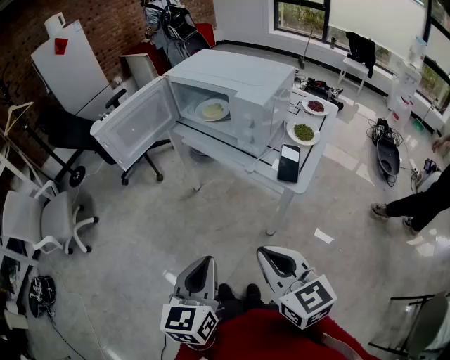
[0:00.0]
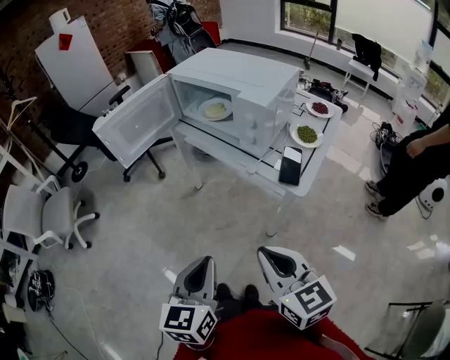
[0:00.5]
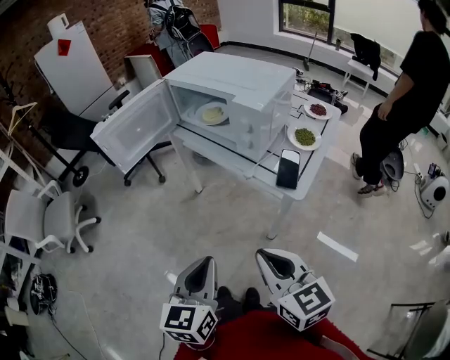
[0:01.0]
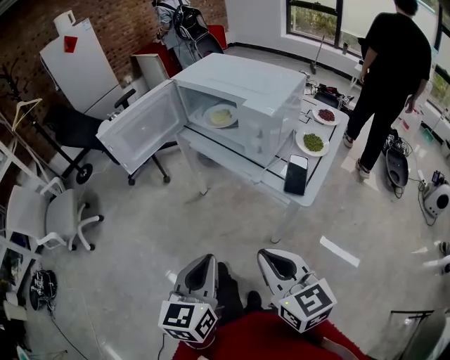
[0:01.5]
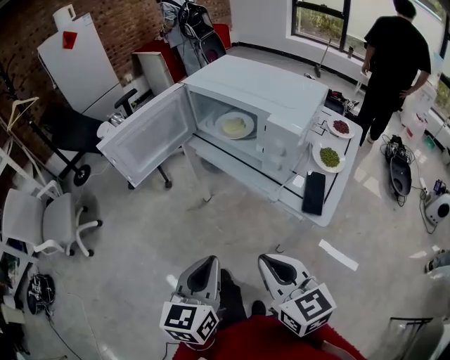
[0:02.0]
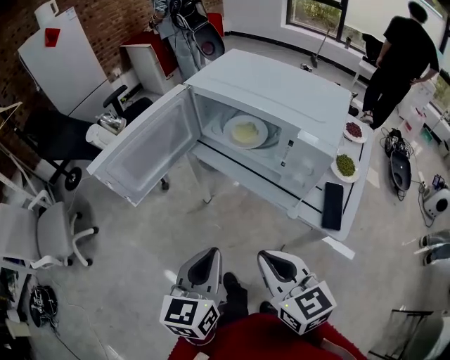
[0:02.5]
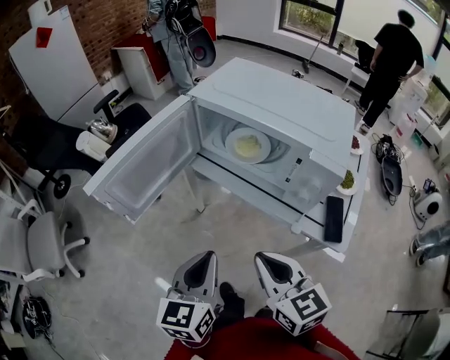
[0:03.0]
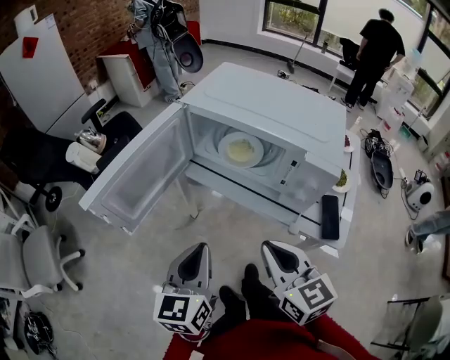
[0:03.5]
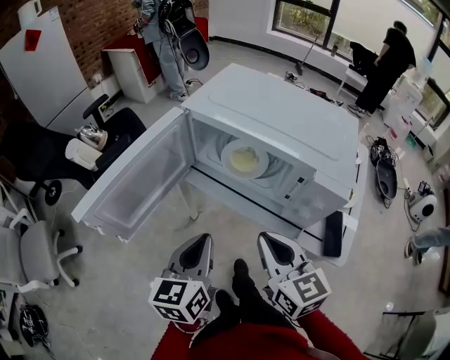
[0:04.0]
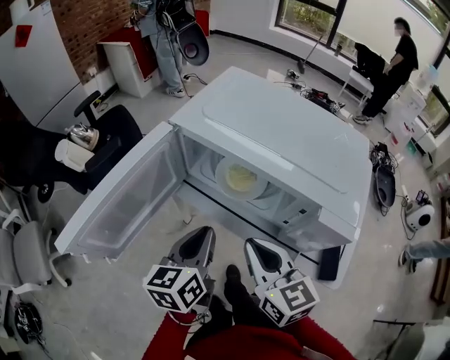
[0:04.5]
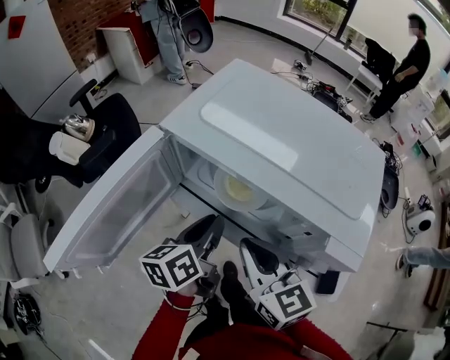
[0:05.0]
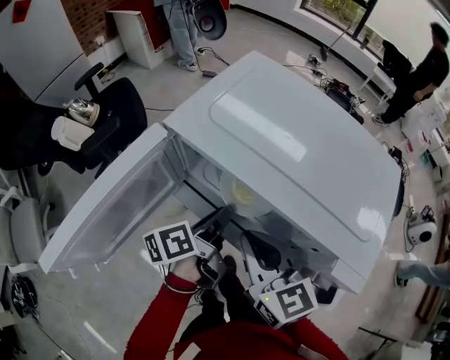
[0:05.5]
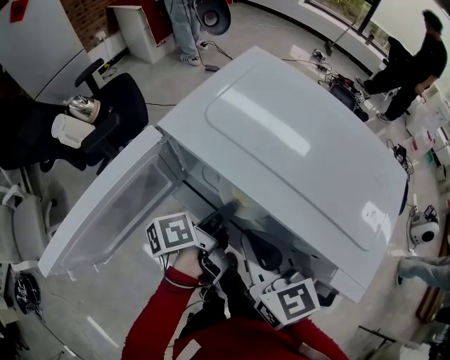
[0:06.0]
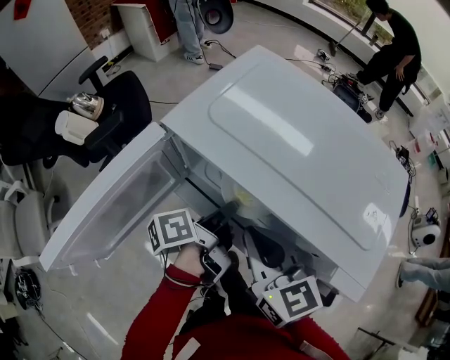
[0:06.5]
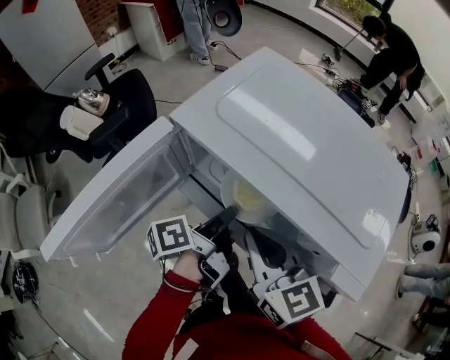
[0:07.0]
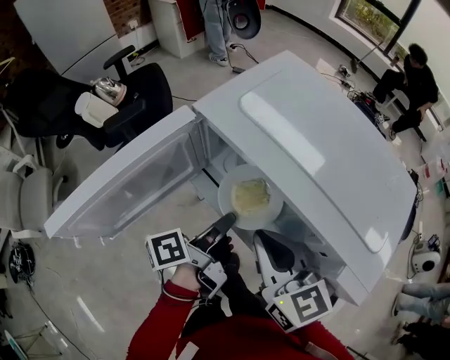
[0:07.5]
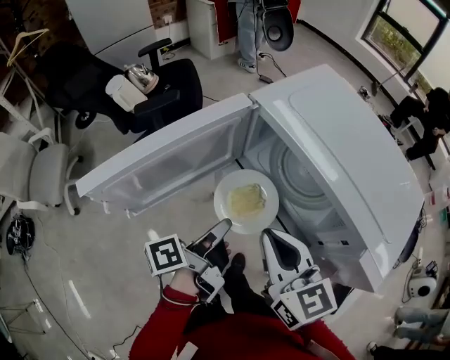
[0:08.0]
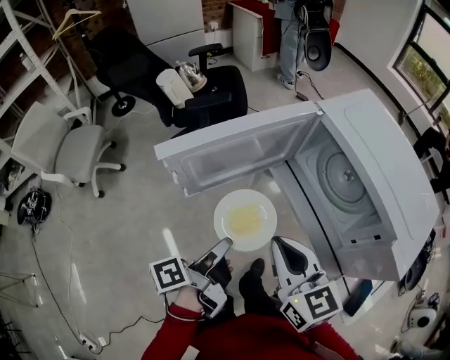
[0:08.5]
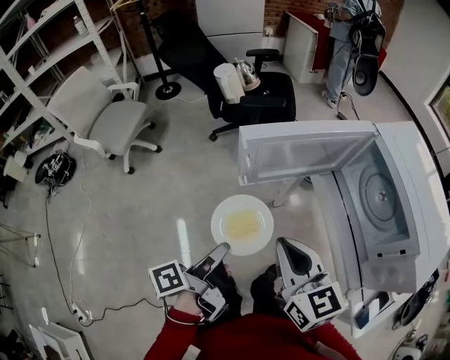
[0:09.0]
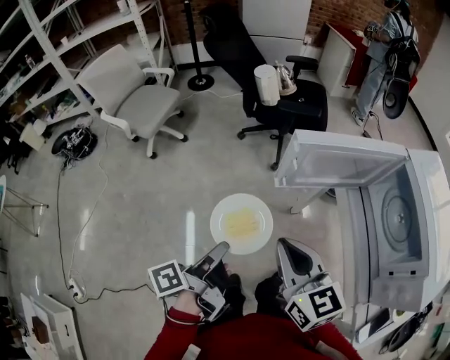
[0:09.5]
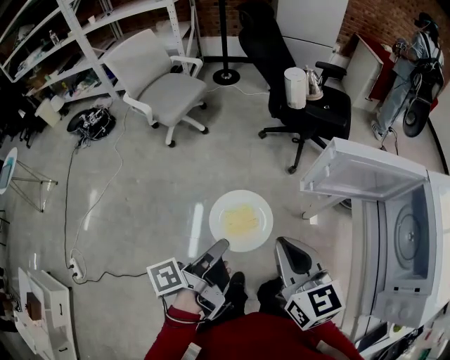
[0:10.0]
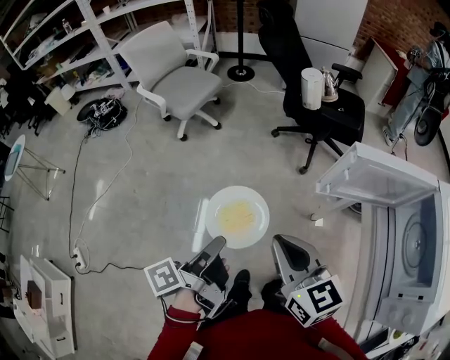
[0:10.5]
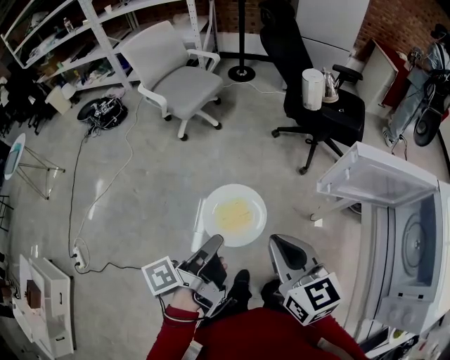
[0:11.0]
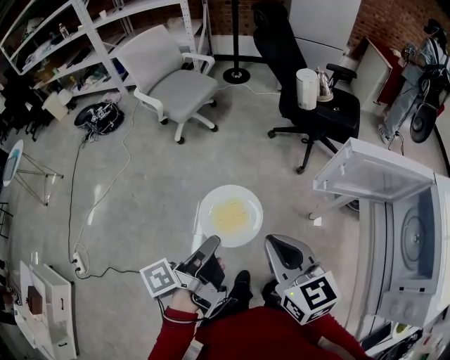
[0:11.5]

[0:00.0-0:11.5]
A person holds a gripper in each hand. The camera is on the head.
0:00.0 to 0:02.0: The two grippers go roughly 10 cm forward.
0:02.0 to 0:04.0: The two grippers go roughly 20 cm forward.
0:04.0 to 0:06.0: The right gripper travels forward by about 15 cm. Meanwhile the left gripper moves forward, downward and to the right, some 20 cm, rolls counterclockwise, seen from behind, by roughly 60 degrees, and opens its fingers.
0:06.0 to 0:07.5: The left gripper changes place by some 5 cm, and rotates approximately 20 degrees.
0:07.5 to 0:09.5: The right gripper moves some 30 cm, and swivels some 40 degrees, while the left gripper changes place by some 40 cm, and rotates about 50 degrees.
0:09.5 to 0:11.5: The two grippers go approximately 10 cm to the left.

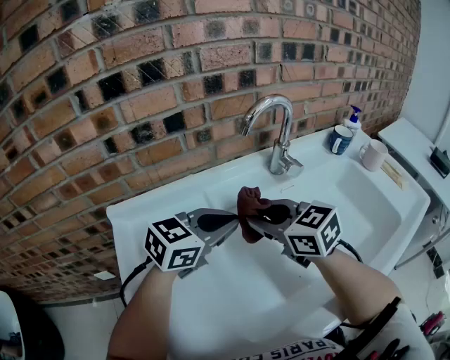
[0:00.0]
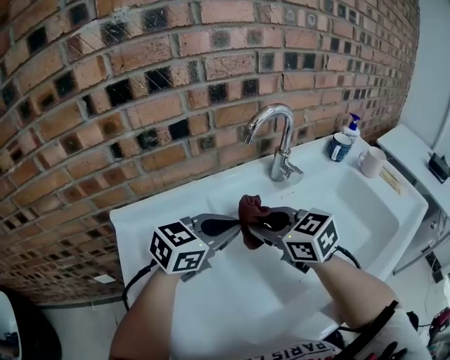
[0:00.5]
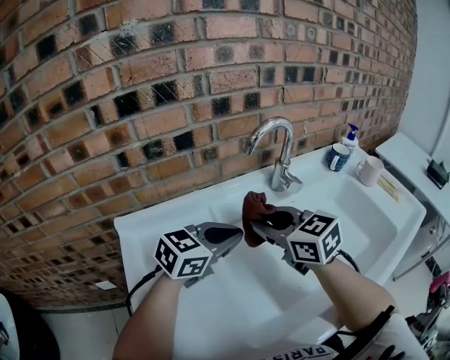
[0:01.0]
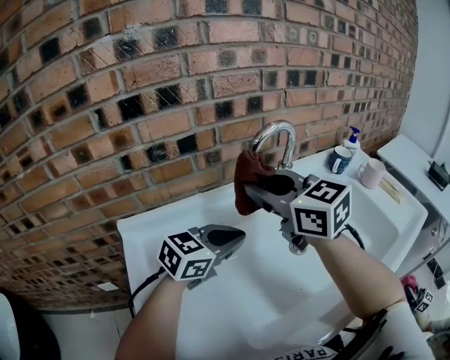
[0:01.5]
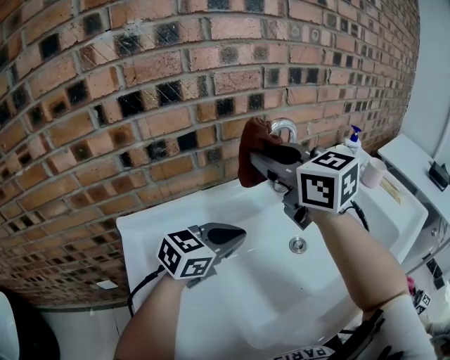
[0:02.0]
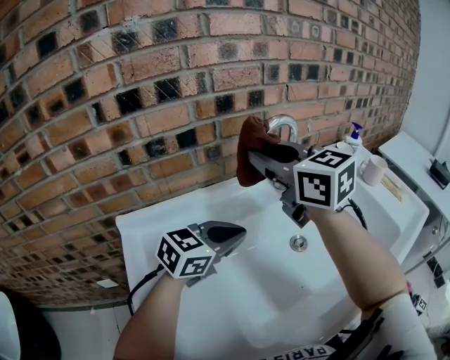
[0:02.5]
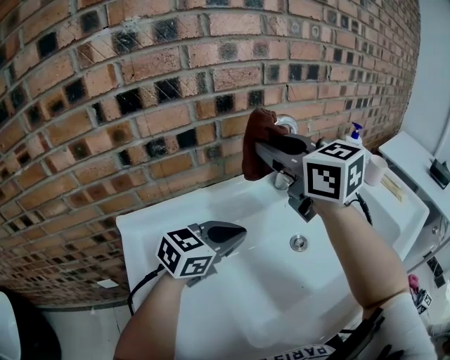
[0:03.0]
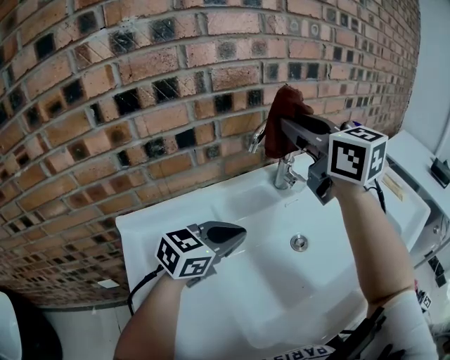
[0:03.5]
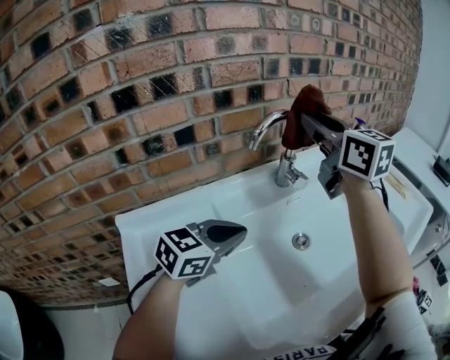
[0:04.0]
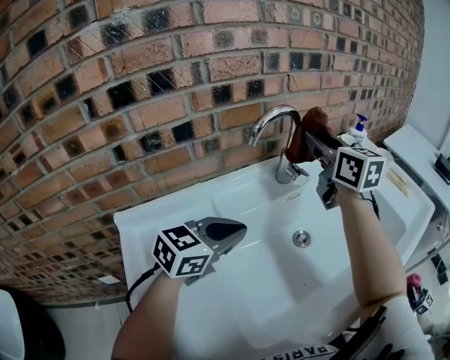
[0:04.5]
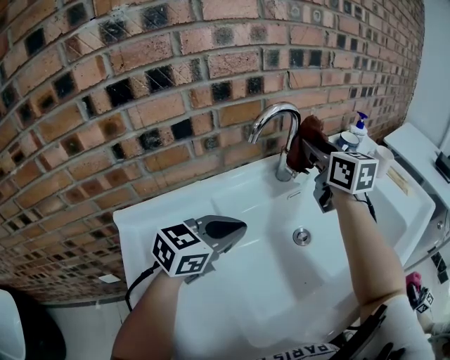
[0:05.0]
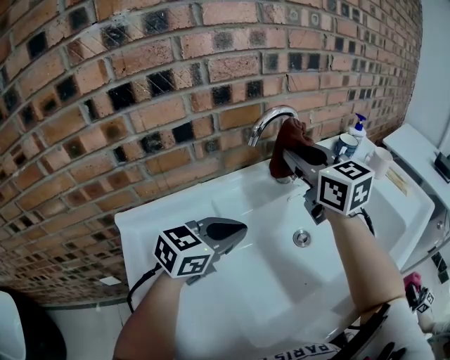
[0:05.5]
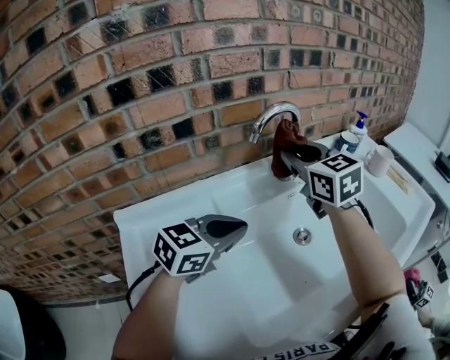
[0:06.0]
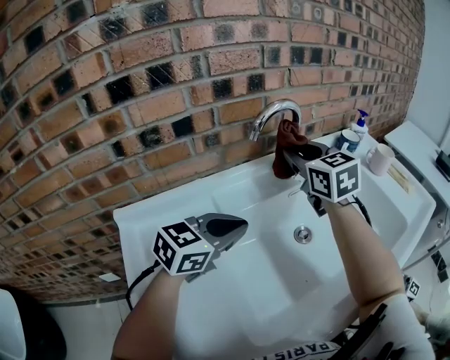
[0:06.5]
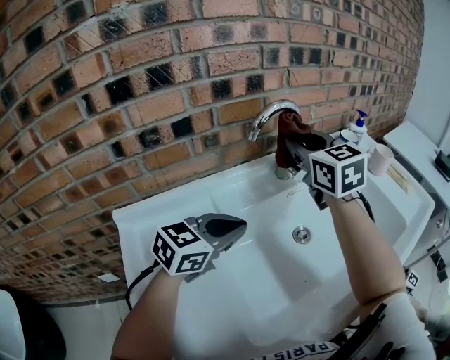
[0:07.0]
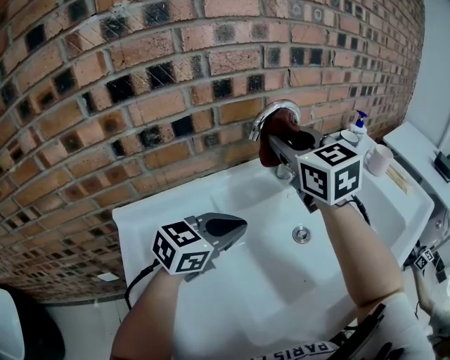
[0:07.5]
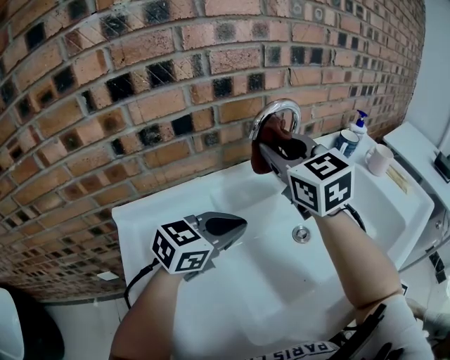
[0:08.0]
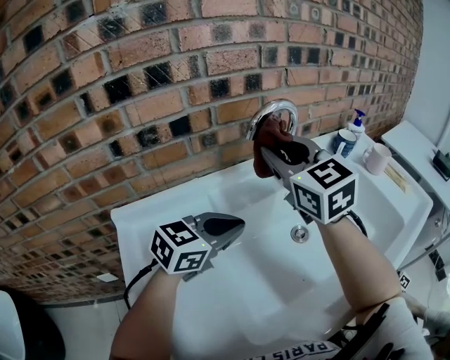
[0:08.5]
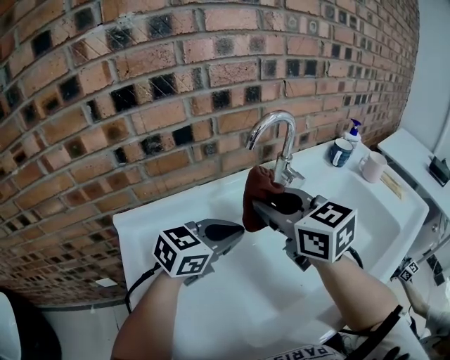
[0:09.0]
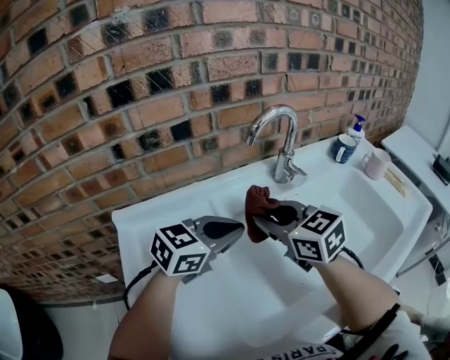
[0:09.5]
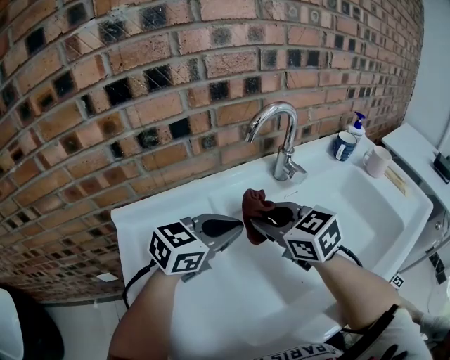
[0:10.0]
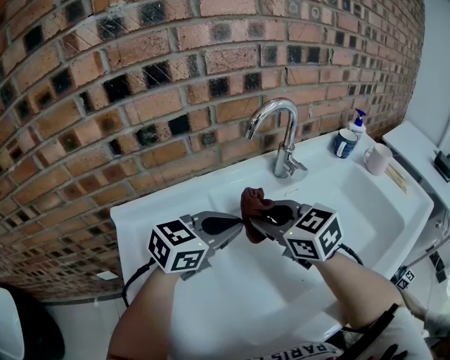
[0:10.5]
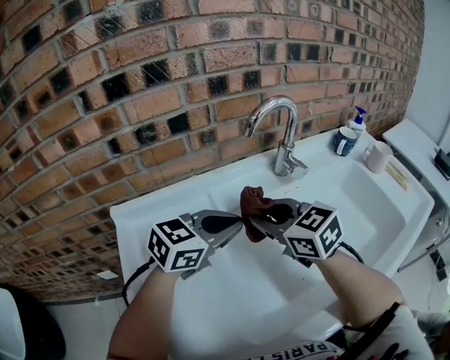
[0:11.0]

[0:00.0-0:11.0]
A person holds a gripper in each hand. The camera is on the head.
0:00.0 to 0:02.0: The right gripper moves upward, some 20 cm.
0:02.0 to 0:03.5: The right gripper goes some 5 cm to the right.
0:03.5 to 0:05.5: The right gripper travels downward by roughly 10 cm.
0:05.5 to 0:07.5: The grippers stay close to where they were, moving slightly.
0:07.5 to 0:09.0: The right gripper is displaced backward and downward by roughly 10 cm.
0:09.0 to 0:11.0: The right gripper heads downward, covering some 10 cm.

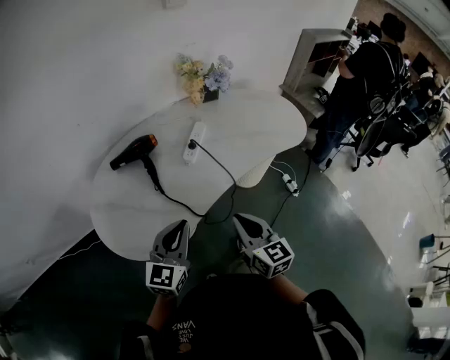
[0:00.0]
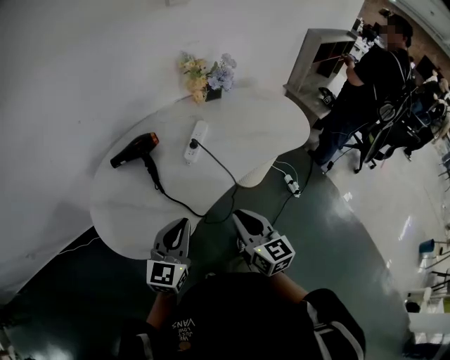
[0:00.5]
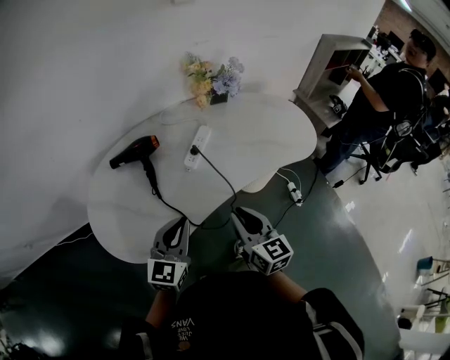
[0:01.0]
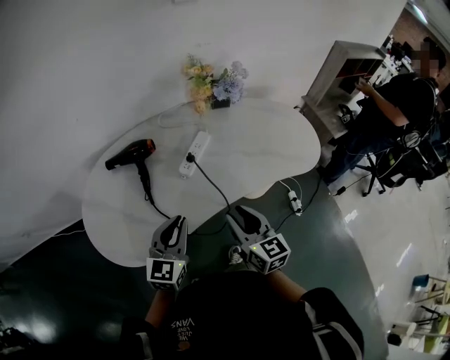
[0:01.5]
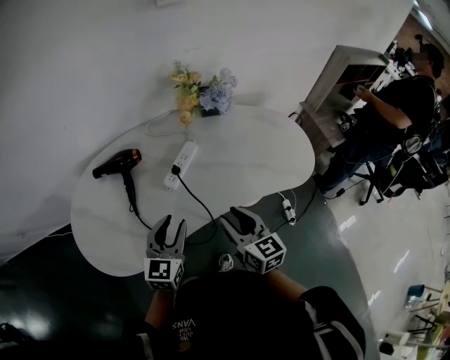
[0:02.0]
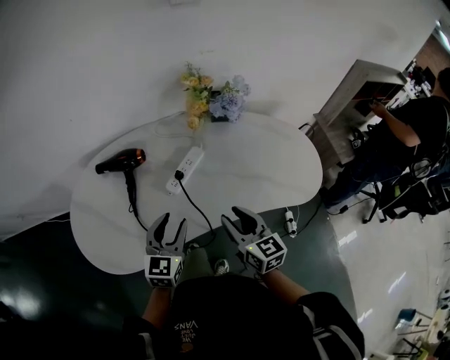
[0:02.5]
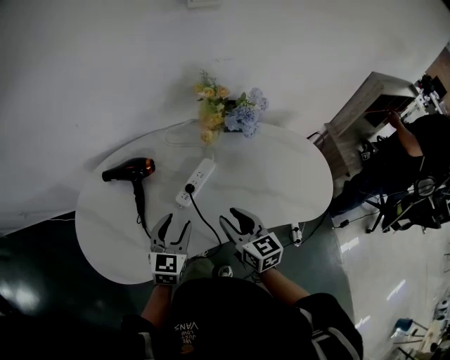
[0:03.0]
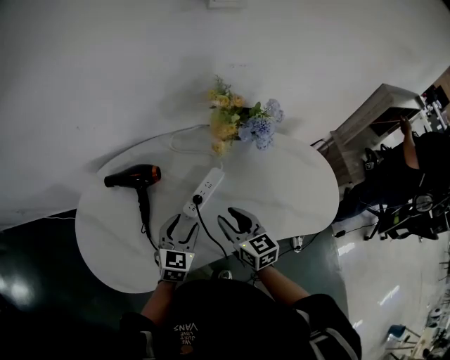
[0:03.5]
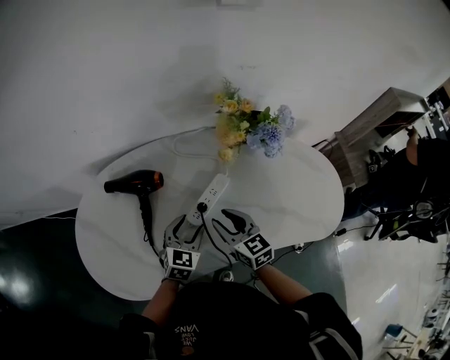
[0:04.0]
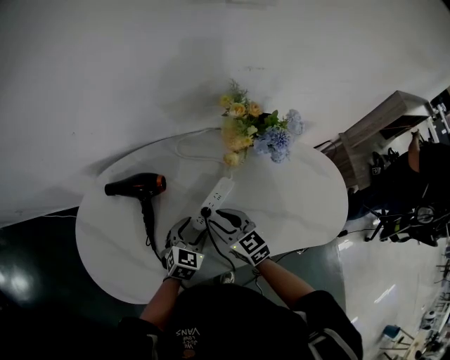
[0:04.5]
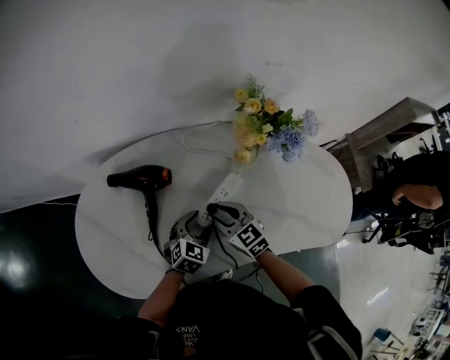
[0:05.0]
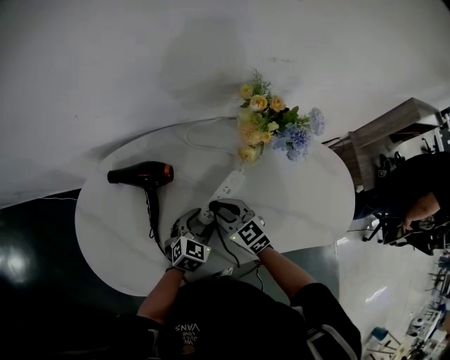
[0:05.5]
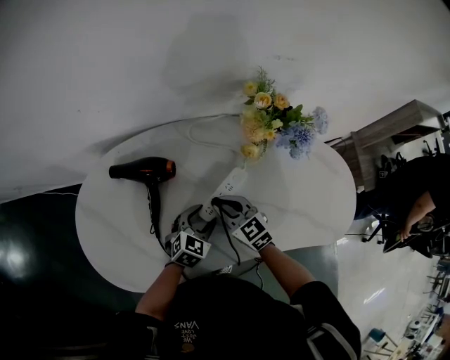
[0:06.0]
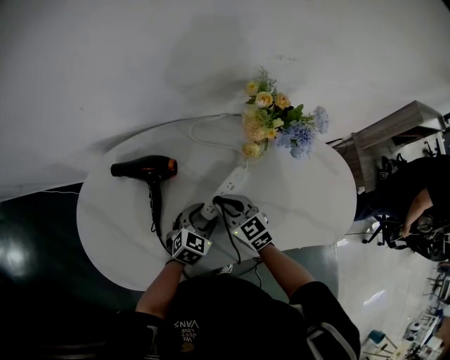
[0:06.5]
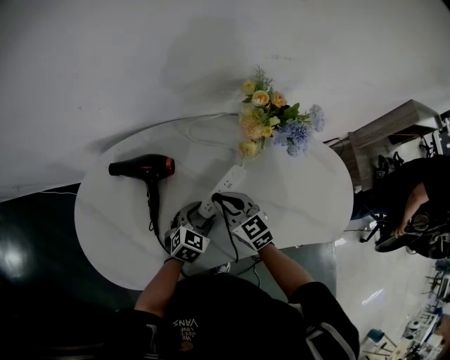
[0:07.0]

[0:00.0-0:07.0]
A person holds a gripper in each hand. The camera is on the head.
0:00.0 to 0:02.0: Both grippers travel together forward and to the right, approximately 20 cm. The right gripper opens its fingers; the left gripper opens up.
0:02.0 to 0:03.5: The right gripper goes some 15 cm forward. Meanwhile the left gripper moves forward and downward, roughly 15 cm.
0:03.5 to 0:05.0: The right gripper heads forward, to the left and downward, covering roughly 15 cm, and swivels some 30 degrees. Meanwhile the left gripper shifts some 10 cm downward and forward.
0:05.0 to 0:07.0: The grippers stay close to where they were, moving slightly.
